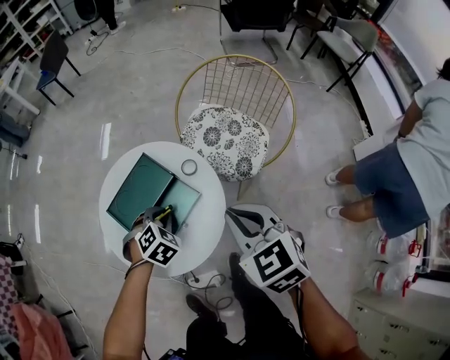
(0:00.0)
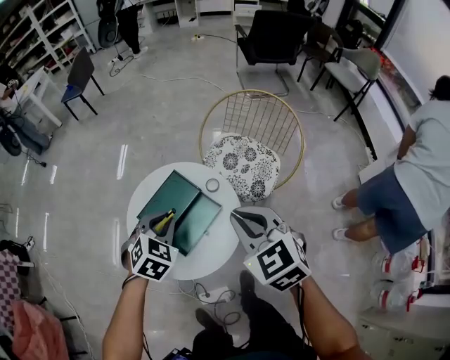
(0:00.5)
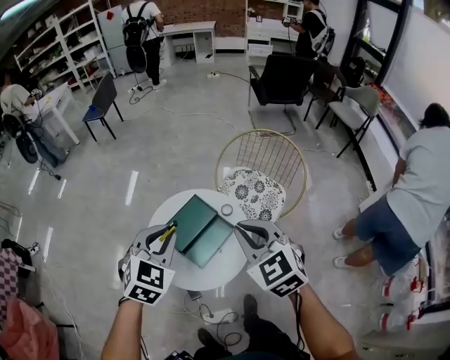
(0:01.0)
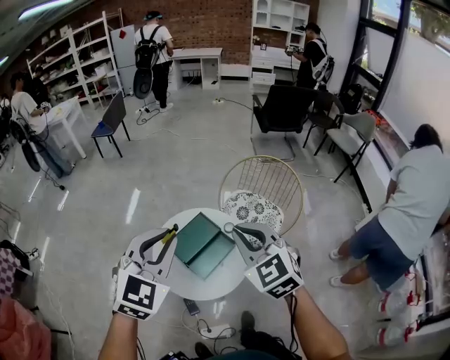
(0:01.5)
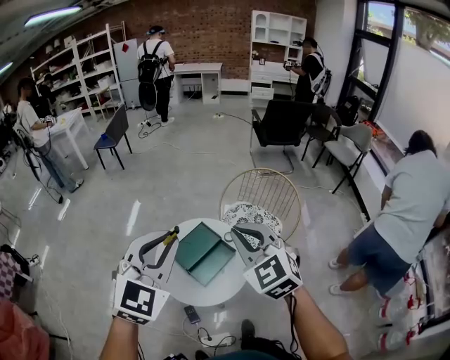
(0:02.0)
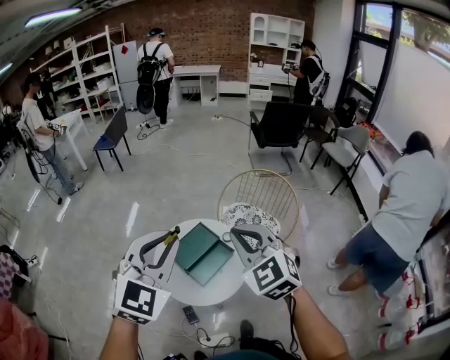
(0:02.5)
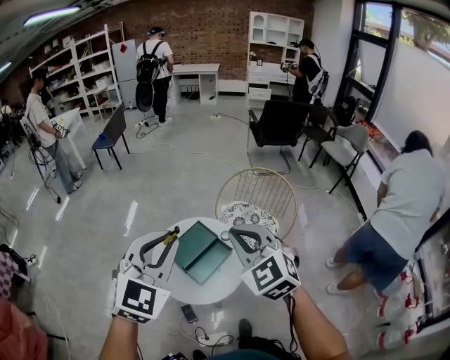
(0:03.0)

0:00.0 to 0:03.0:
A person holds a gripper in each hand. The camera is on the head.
0:00.0 to 0:01.5: The right gripper moves upward and to the left, some 30 cm, and turns by about 20 degrees; the left gripper goes about 50 cm upward, and points its fingers roughly 50 degrees further upward.
0:01.5 to 0:03.0: The left gripper changes place by roughly 5 cm. Meanwhile the right gripper changes place by some 5 cm.

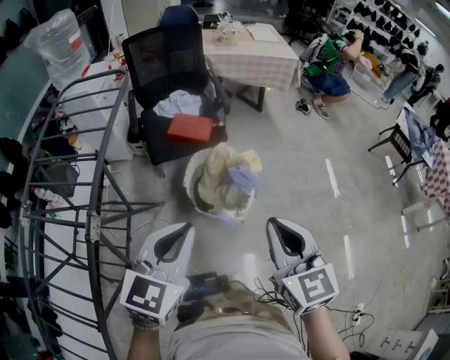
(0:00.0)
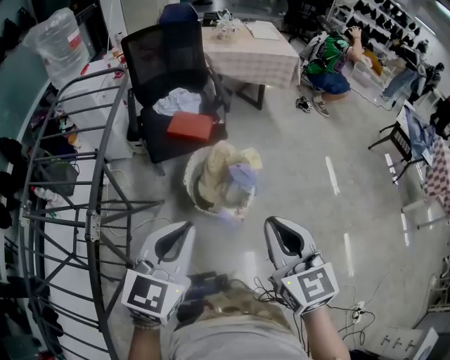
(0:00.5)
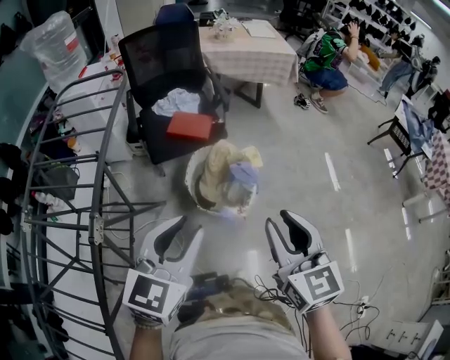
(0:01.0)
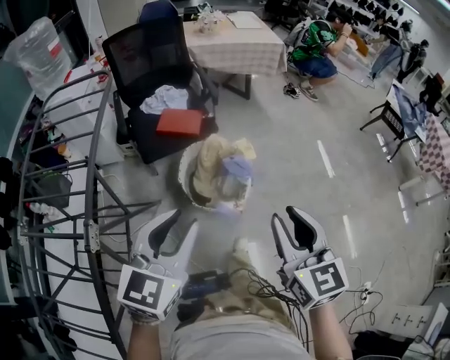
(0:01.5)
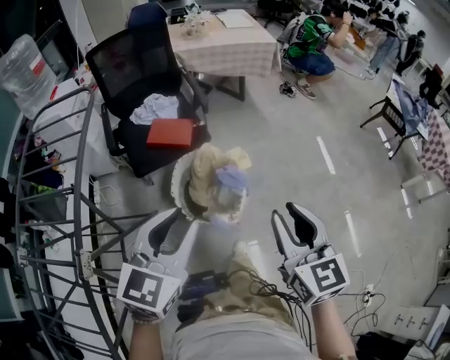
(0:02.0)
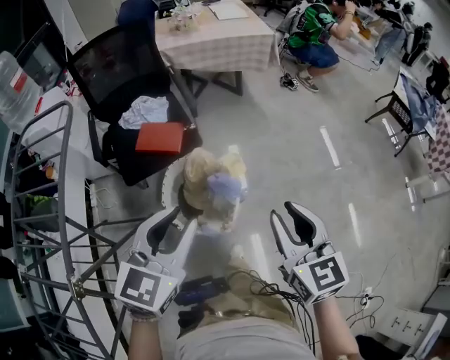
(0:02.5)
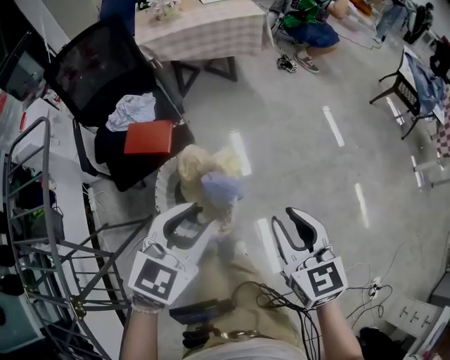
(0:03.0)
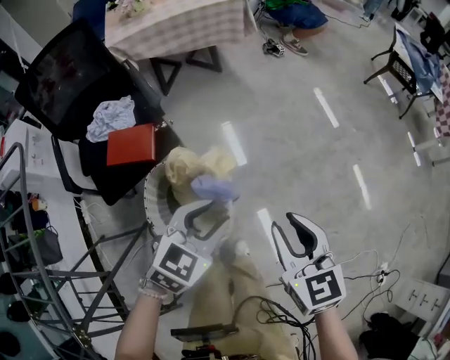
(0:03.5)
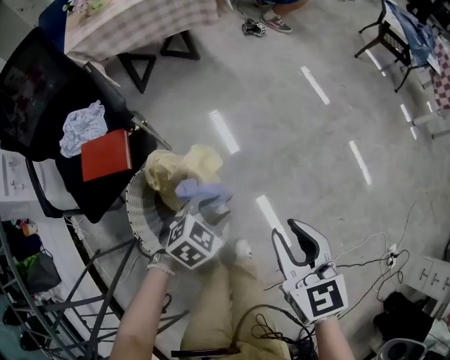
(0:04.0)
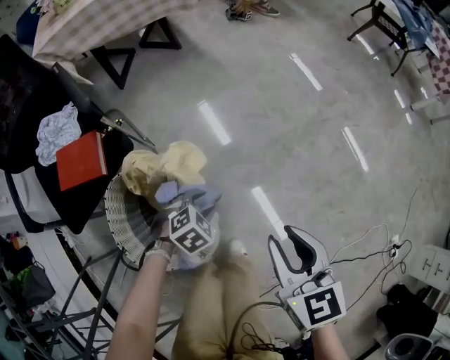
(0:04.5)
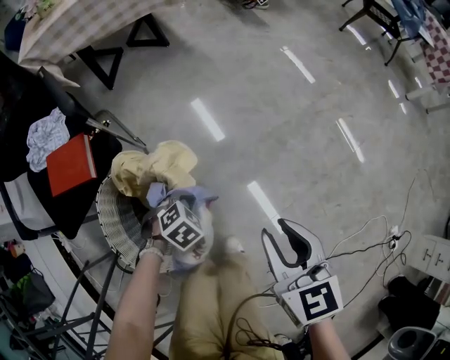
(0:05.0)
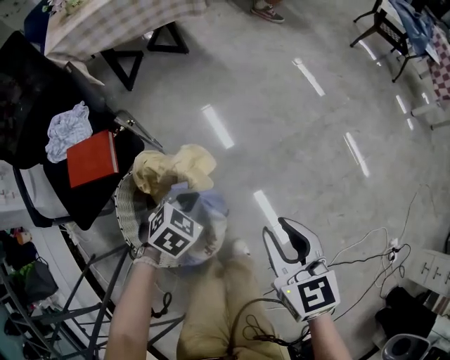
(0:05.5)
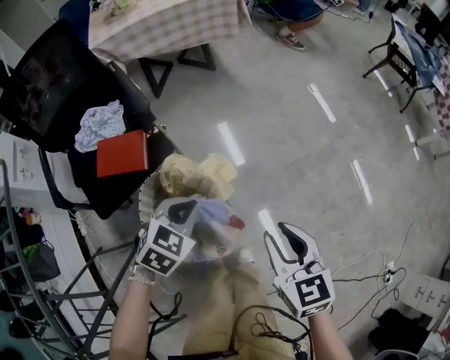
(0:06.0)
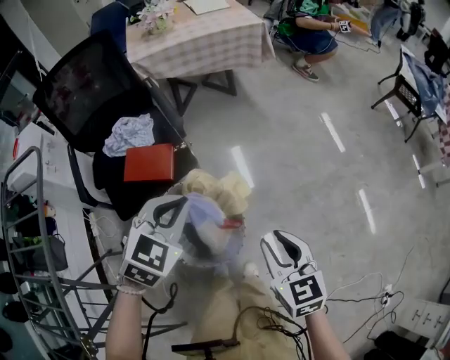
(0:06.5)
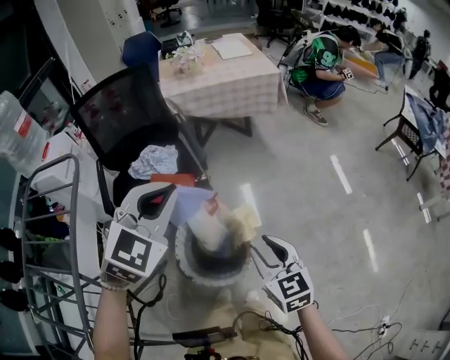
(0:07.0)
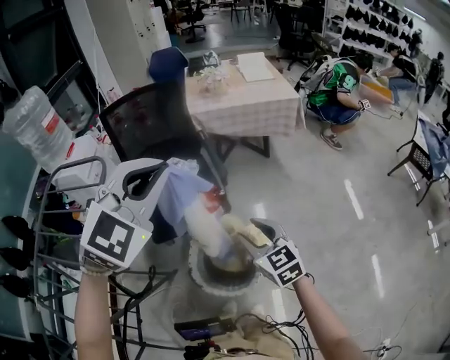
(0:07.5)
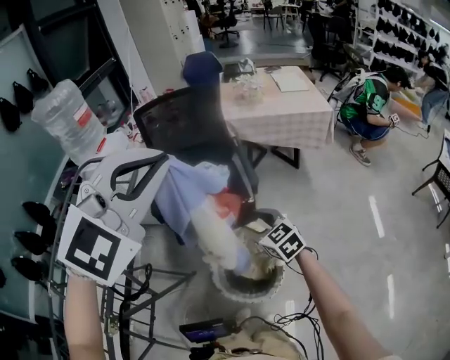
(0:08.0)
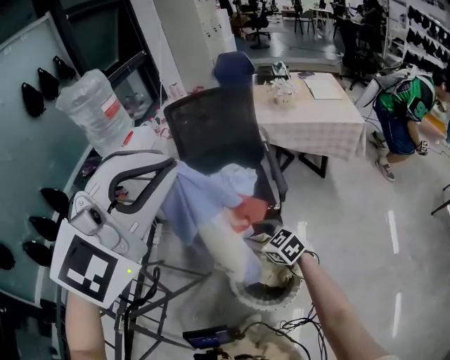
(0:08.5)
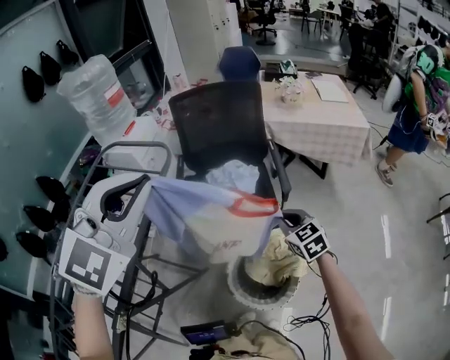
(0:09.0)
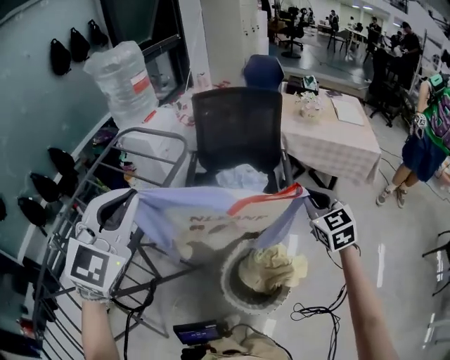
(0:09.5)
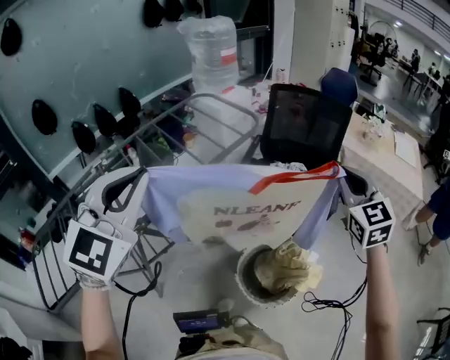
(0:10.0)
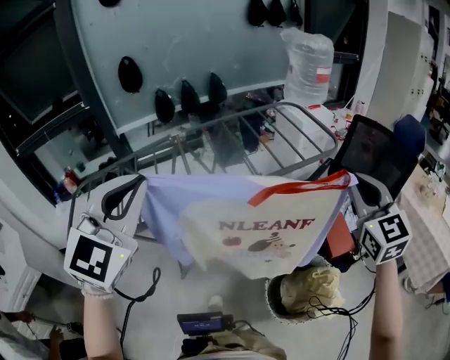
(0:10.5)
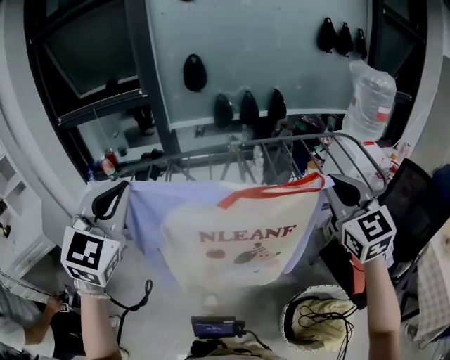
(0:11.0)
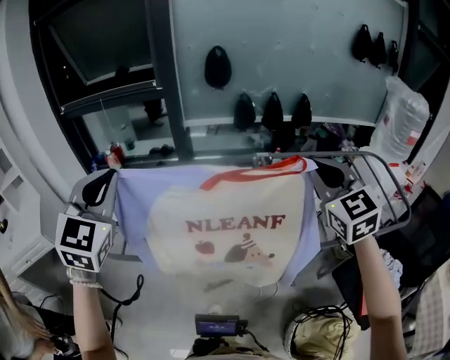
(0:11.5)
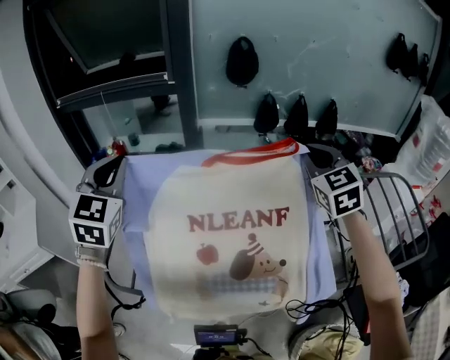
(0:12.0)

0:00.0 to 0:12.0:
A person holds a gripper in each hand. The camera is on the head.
0:00.0 to 0:02.0: The left gripper moves forward, about 10 cm, and opens its fingers; the right gripper moves forward and to the right, roughly 10 cm, and opens up.
0:02.0 to 0:04.0: The right gripper moves downward, some 25 cm, and rotates about 20 degrees, while the left gripper travels downward by roughly 40 cm, and tips its fingers downward by approximately 40 degrees.
0:04.0 to 0:06.0: The left gripper shifts about 10 cm to the left, moves approximately 20 cm downward and comes back, and closes up; the right gripper reaches approximately 10 cm downward, then returns.
0:06.0 to 0:08.0: The right gripper moves some 30 cm, rotates some 50 degrees, and opens up, while the left gripper moves upward, roughly 50 cm, and tilts its fingers about 40 degrees upward.
0:08.0 to 0:10.0: The right gripper is displaced upward by approximately 25 cm, rotates some 30 degrees, and closes up; the left gripper ends up approximately 30 cm from where it was, and turns by roughly 60 degrees.
0:10.0 to 0:12.0: The pair of grippers is taken some 80 cm. The right gripper rotates some 50 degrees; the left gripper turns by some 60 degrees.

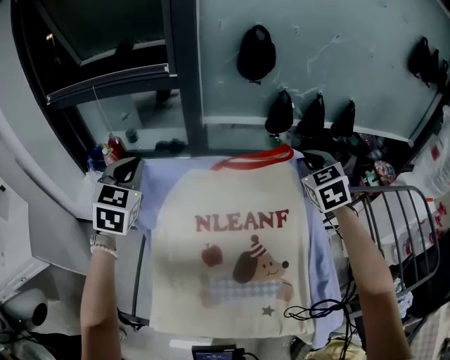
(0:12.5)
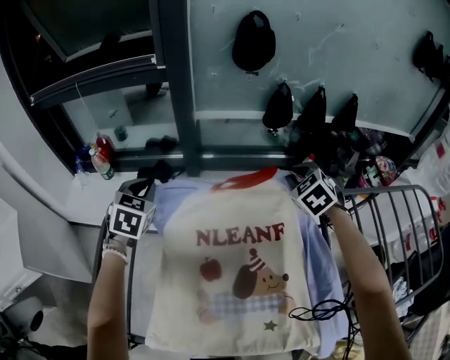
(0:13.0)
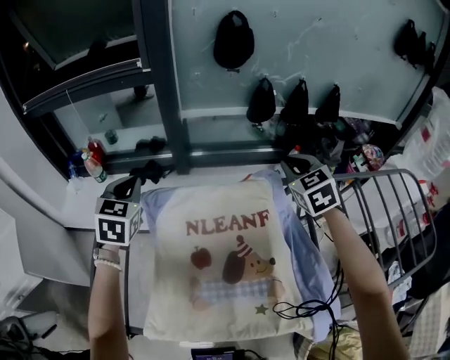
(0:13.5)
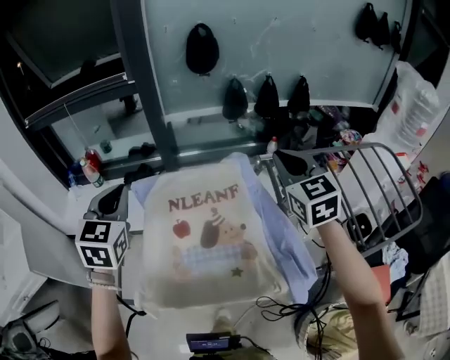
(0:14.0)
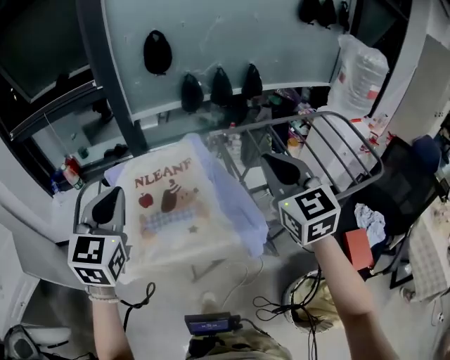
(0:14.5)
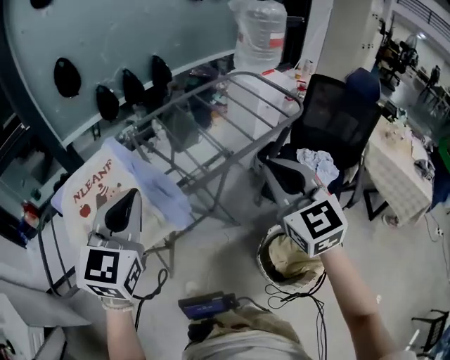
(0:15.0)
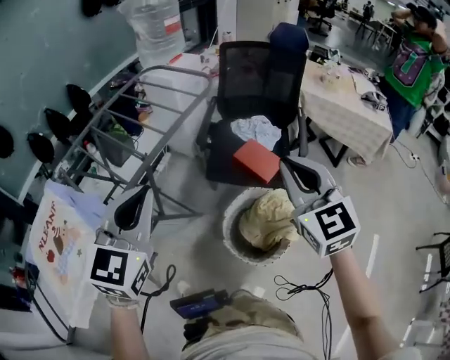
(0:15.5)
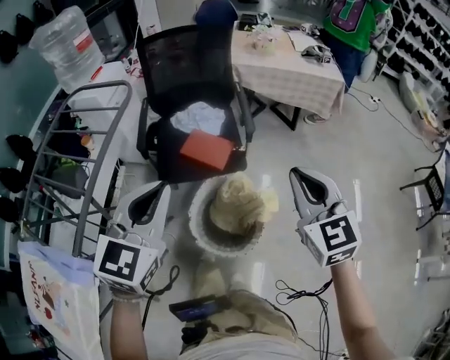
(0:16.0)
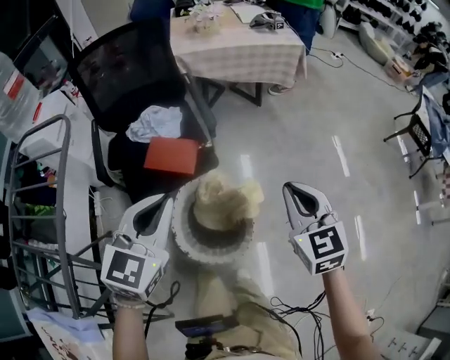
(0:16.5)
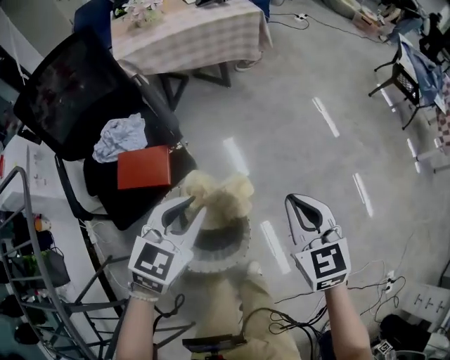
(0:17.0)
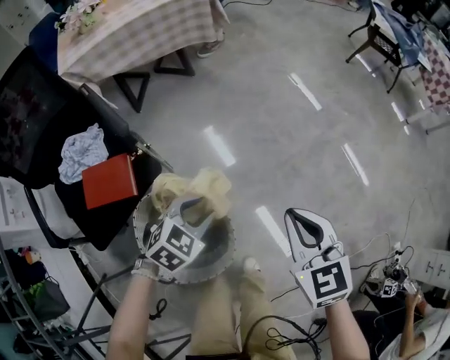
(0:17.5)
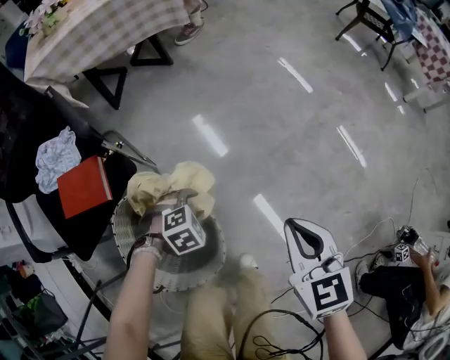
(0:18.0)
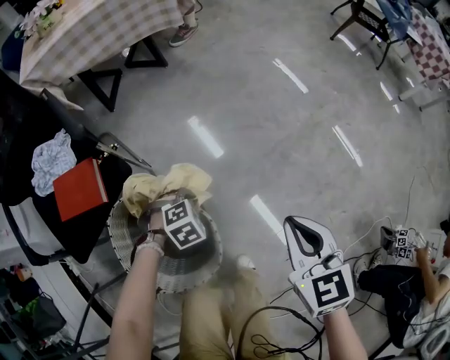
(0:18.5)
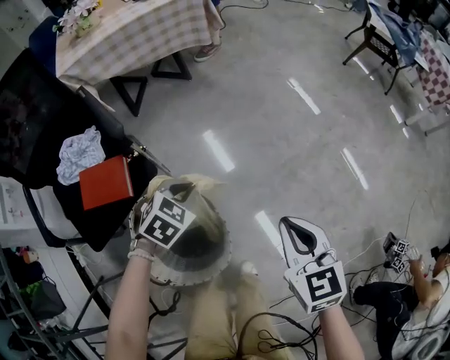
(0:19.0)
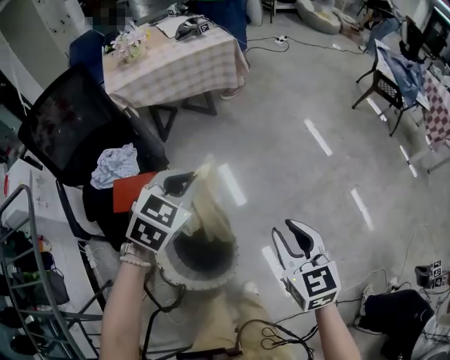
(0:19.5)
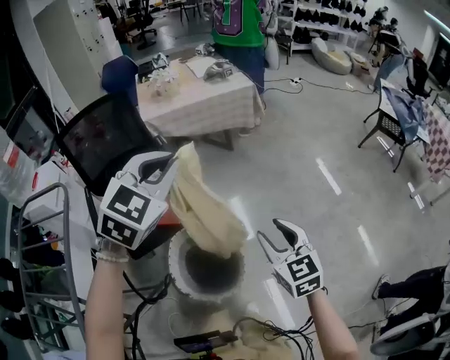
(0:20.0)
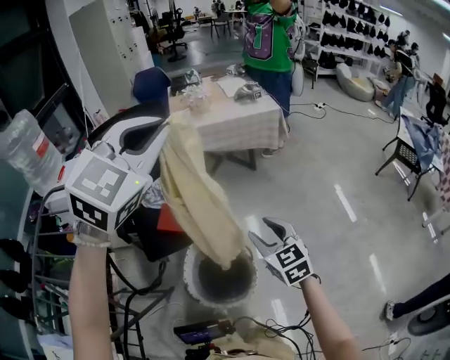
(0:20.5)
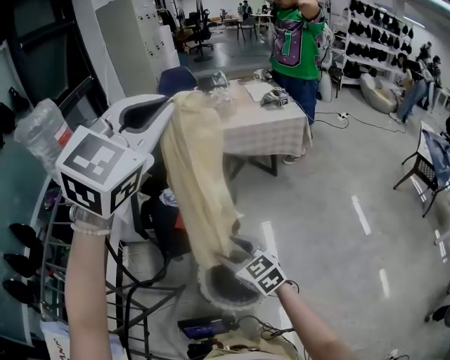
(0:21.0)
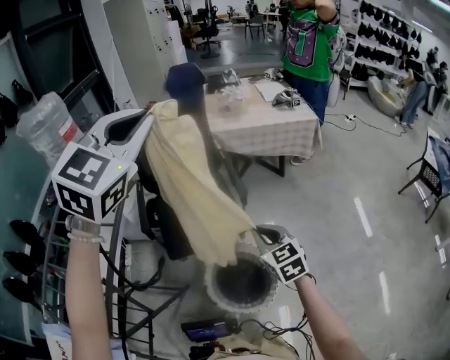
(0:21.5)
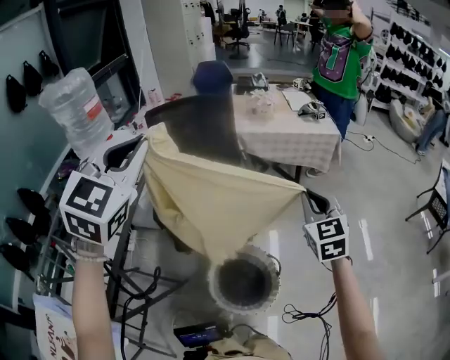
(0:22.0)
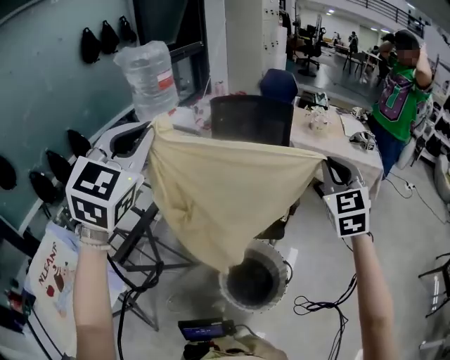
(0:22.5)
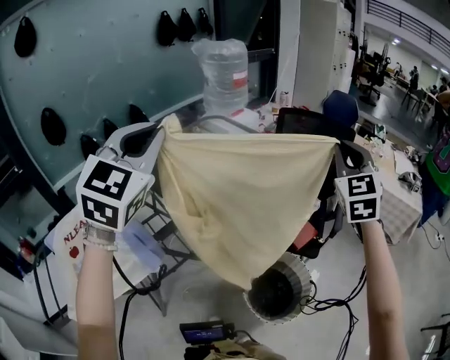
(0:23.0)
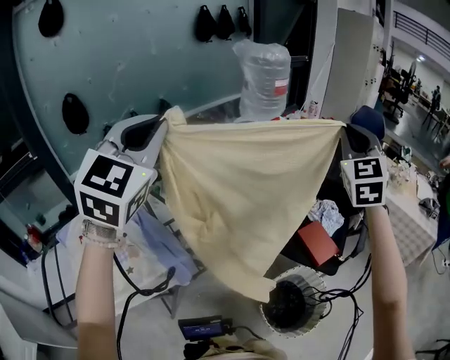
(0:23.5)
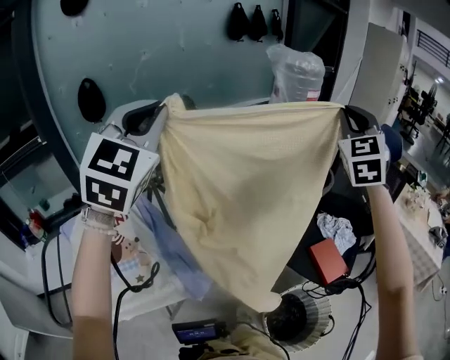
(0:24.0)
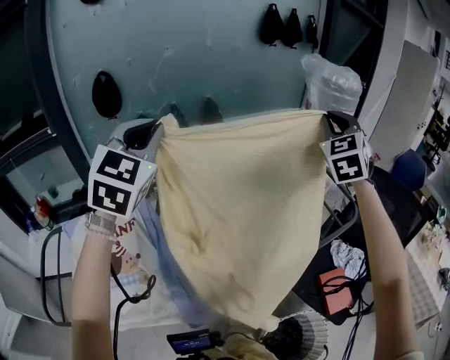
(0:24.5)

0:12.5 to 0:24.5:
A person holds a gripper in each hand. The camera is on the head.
0:12.5 to 0:14.5: The left gripper heads backward and to the right, covering about 35 cm; the right gripper shifts about 40 cm backward, and swivels some 30 degrees.
0:14.5 to 0:16.5: The pair of grippers is taken roughly 80 cm. The right gripper swivels about 90 degrees; the left gripper swivels some 100 degrees.
0:16.5 to 0:18.5: The right gripper shifts some 25 cm downward, and rotates about 30 degrees. The left gripper goes about 50 cm downward, tips its fingers downward by some 60 degrees, and opens, then closes again.
0:18.5 to 0:20.5: The right gripper moves upward, approximately 25 cm, changes its angle by roughly 40 degrees, and opens; the left gripper shifts about 80 cm upward, and points its fingers roughly 60 degrees further upward.
0:20.5 to 0:22.5: The right gripper goes roughly 20 cm upward, swivels about 30 degrees, and closes, while the left gripper changes place by about 35 cm, and changes its angle by approximately 50 degrees.
0:22.5 to 0:24.5: Both grippers are carried some 60 cm. The left gripper rotates some 40 degrees, while the right gripper swivels approximately 40 degrees.
